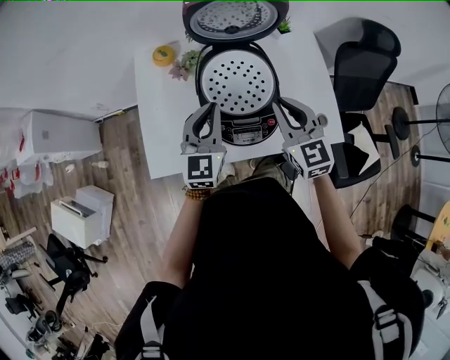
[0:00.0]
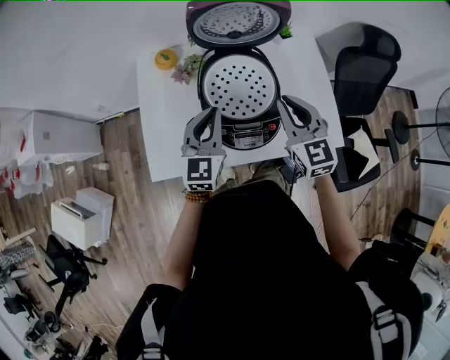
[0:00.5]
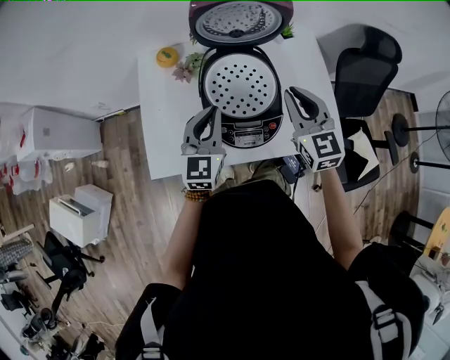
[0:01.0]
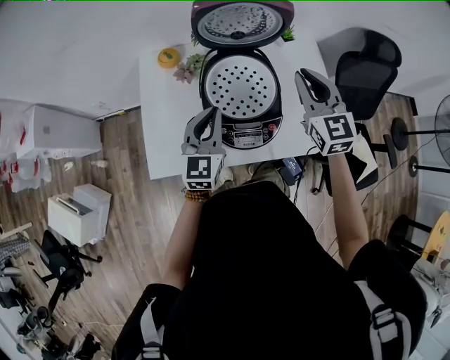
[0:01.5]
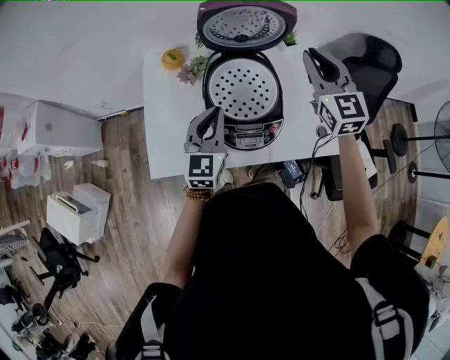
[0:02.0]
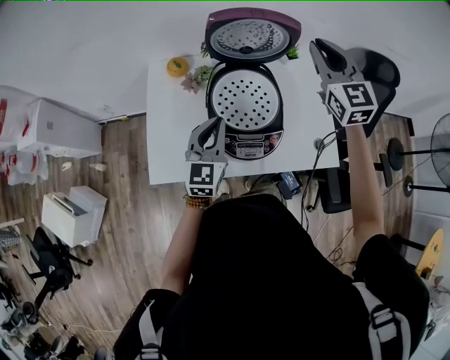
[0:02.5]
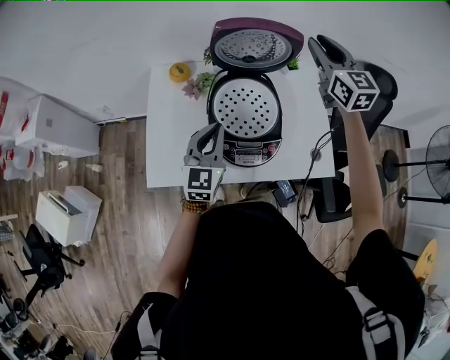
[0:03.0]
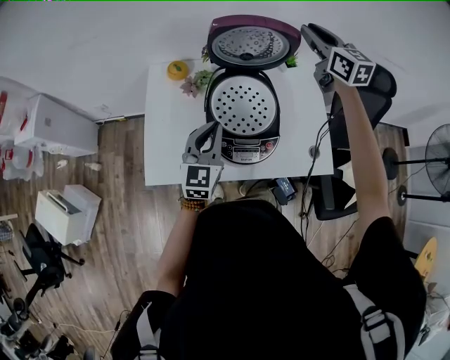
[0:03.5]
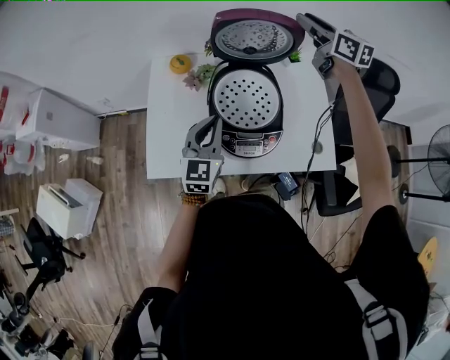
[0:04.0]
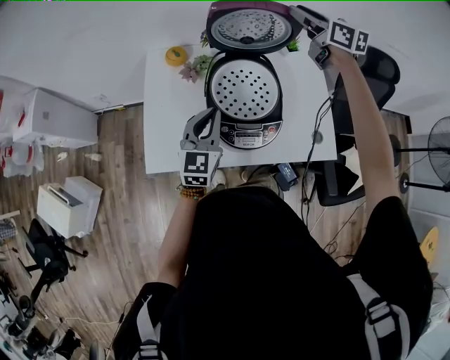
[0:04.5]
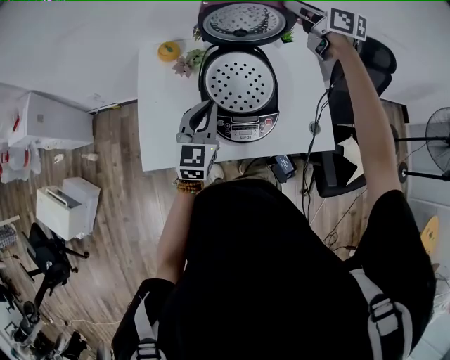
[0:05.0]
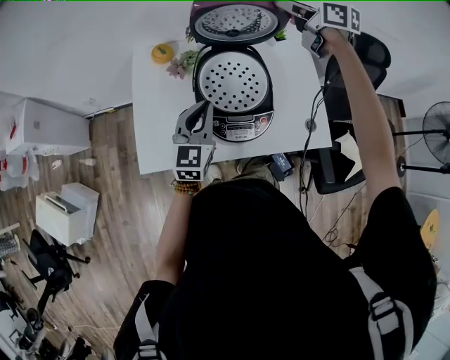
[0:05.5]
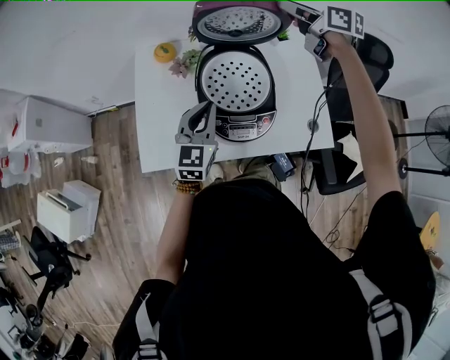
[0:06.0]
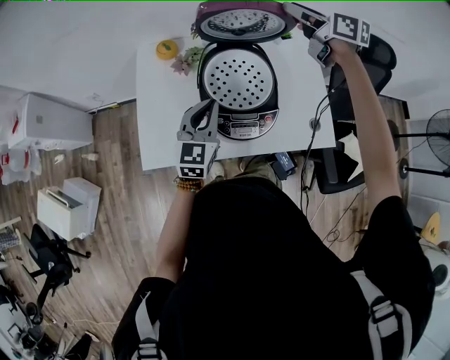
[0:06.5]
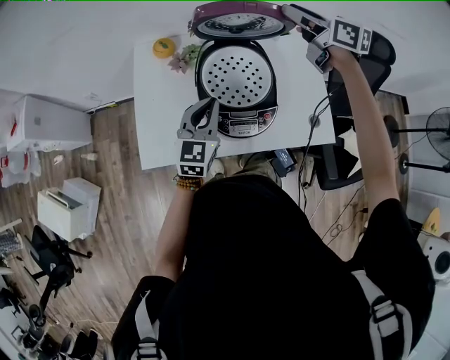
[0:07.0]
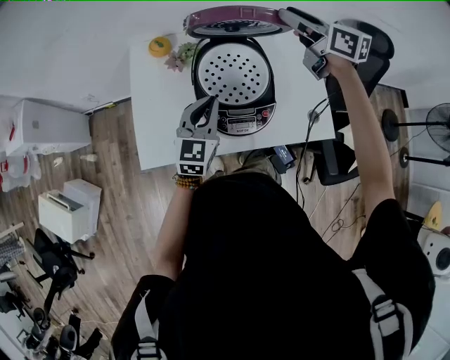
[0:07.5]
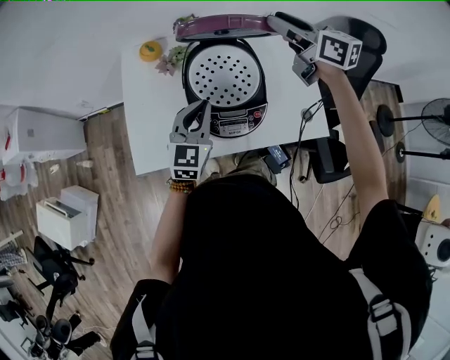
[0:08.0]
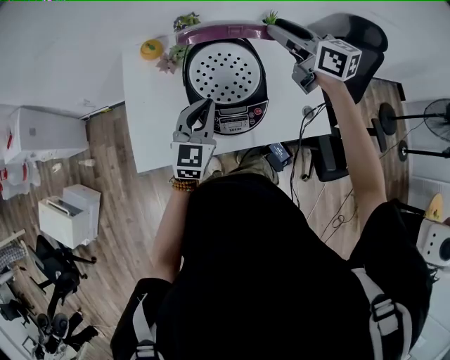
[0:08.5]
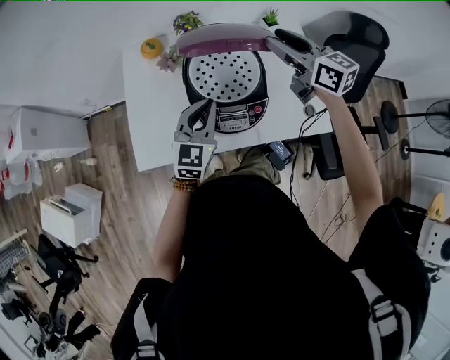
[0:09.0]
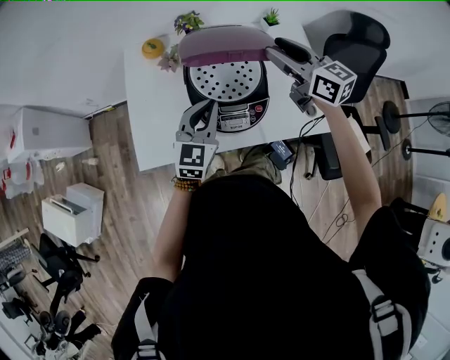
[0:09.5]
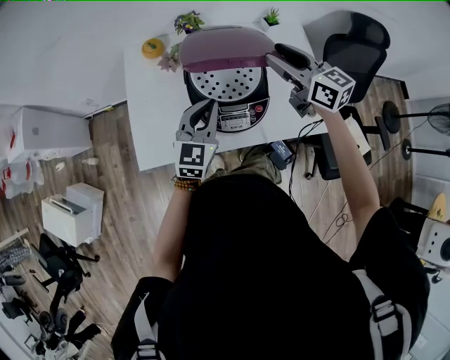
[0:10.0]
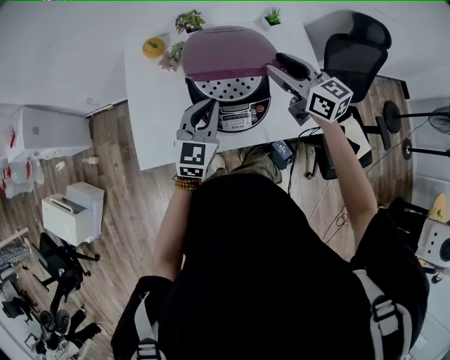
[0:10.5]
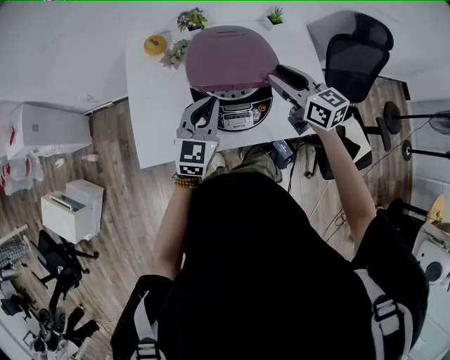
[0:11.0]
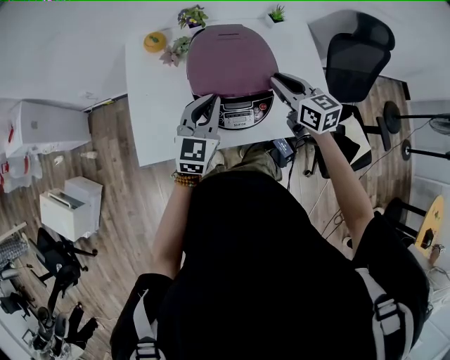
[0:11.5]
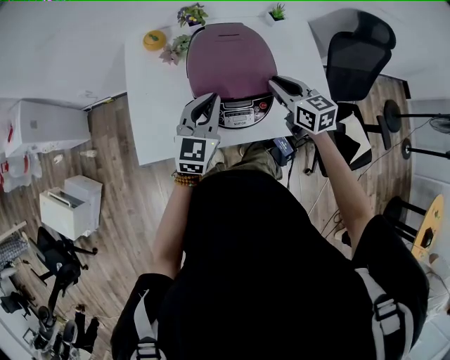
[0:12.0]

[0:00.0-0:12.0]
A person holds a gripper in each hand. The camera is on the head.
0:00.0 to 0:02.0: The right gripper moves upward and forward, roughly 15 cm.
0:02.0 to 0:04.0: The right gripper moves forward, some 15 cm, changes its angle by roughly 30 degrees, and opens its fingers.
0:04.0 to 0:06.0: The grippers make only small movements.
0:06.0 to 0:08.0: The right gripper heads backward, covering roughly 10 cm.
0:08.0 to 0:10.0: The right gripper moves backward and downward, approximately 10 cm.
0:10.0 to 0:12.0: The right gripper goes some 10 cm downward, and closes up.

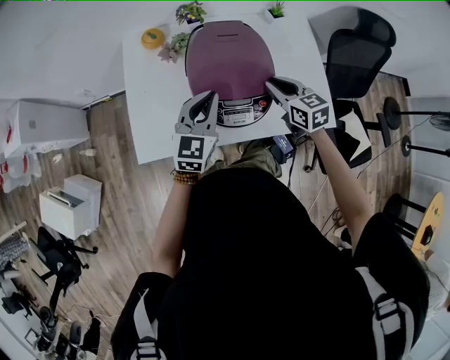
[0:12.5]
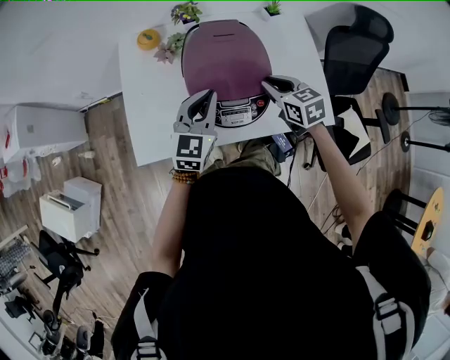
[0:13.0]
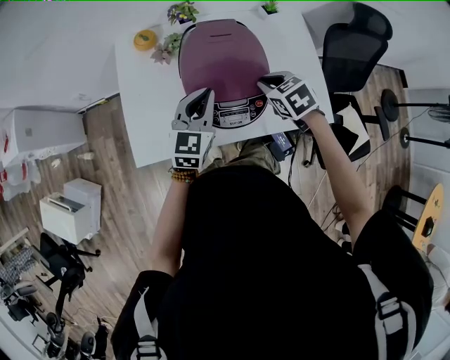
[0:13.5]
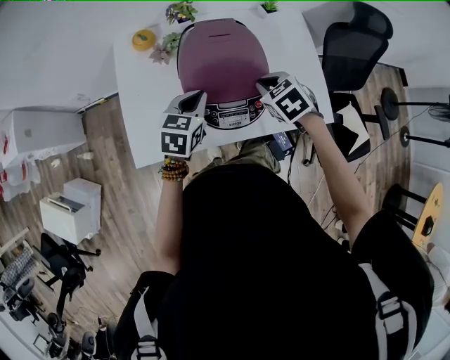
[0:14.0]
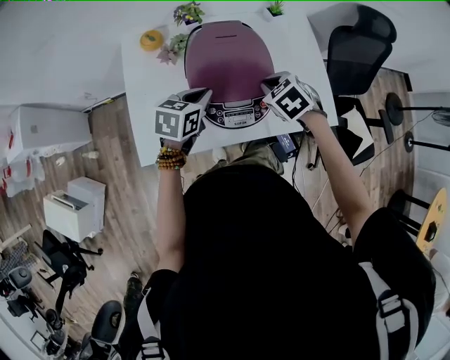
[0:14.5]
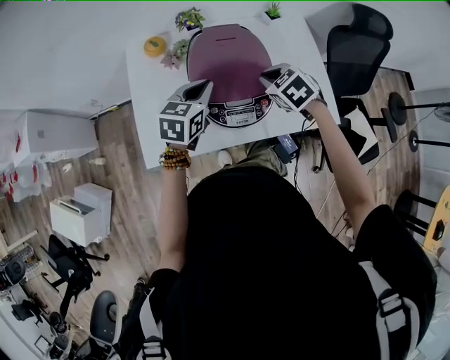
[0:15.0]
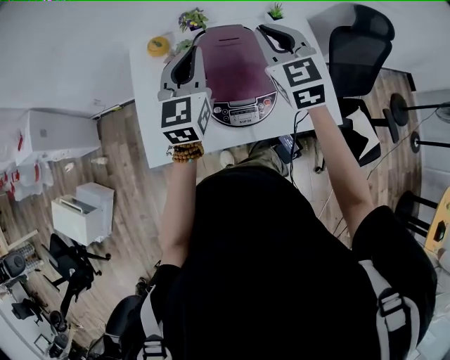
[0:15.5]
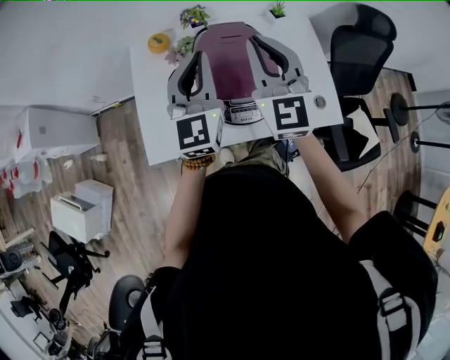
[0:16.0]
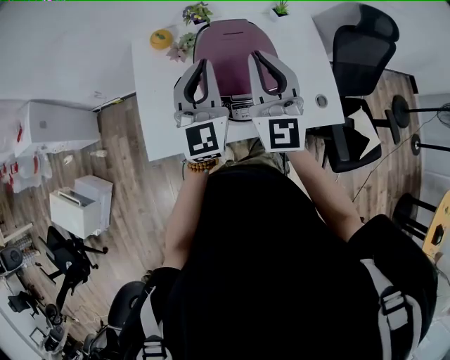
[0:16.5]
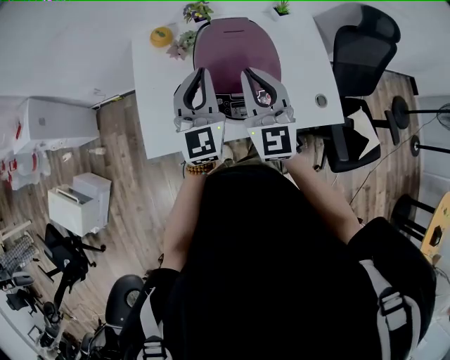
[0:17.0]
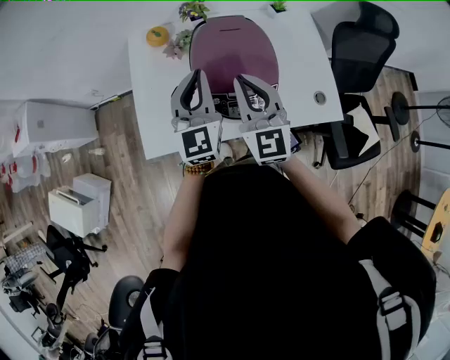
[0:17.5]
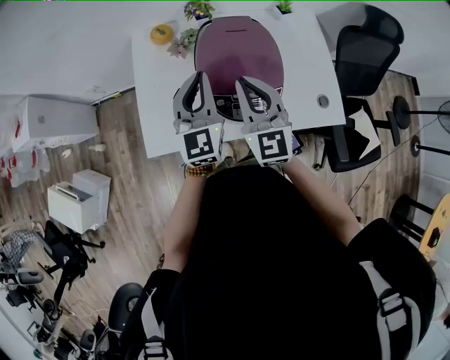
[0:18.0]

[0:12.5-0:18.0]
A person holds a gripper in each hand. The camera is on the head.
0:12.5 to 0:14.5: The left gripper shifts about 5 cm downward, and changes its angle by about 30 degrees, while the right gripper swivels some 40 degrees.
0:14.5 to 0:16.0: Both grippers travel together upward, approximately 20 cm. The left gripper angles its fingers upward, by about 40 degrees, while the right gripper tilts its fingers about 60 degrees upward.
0:16.0 to 0:18.0: The left gripper moves downward, about 10 cm. Meanwhile the right gripper is displaced downward and backward by some 10 cm.

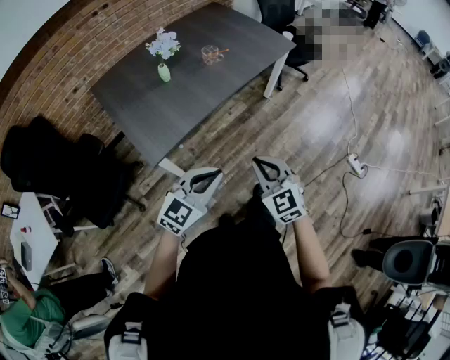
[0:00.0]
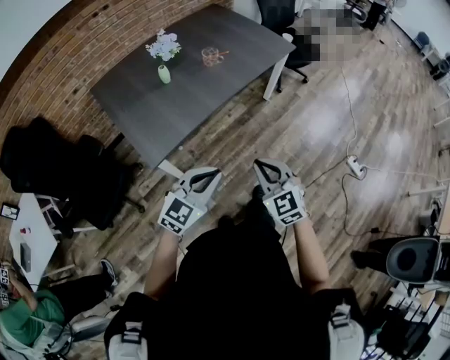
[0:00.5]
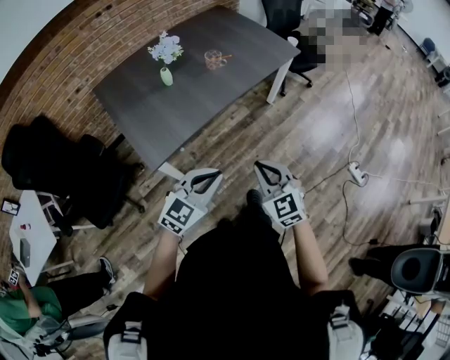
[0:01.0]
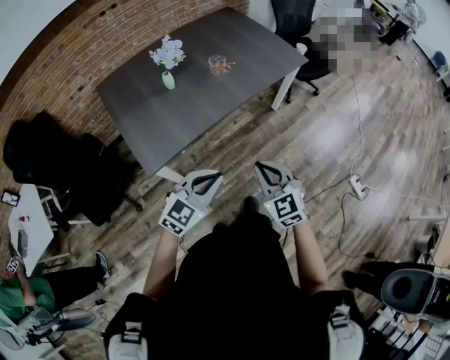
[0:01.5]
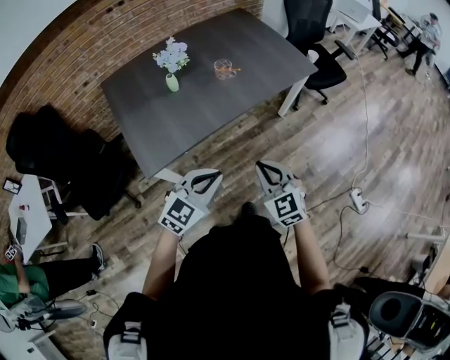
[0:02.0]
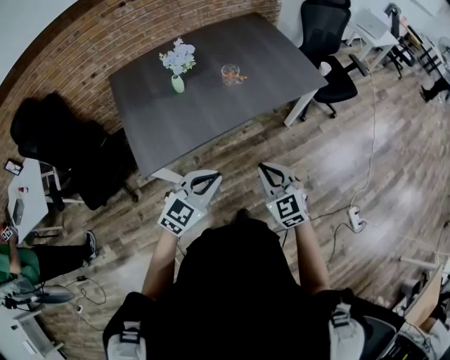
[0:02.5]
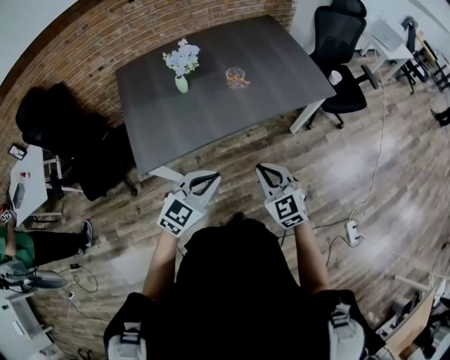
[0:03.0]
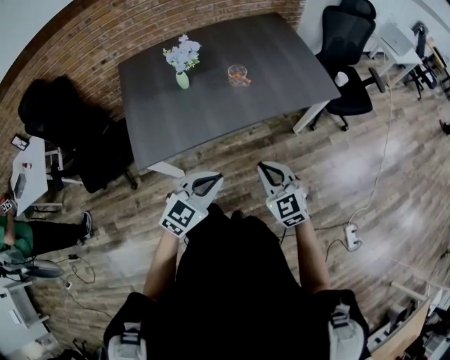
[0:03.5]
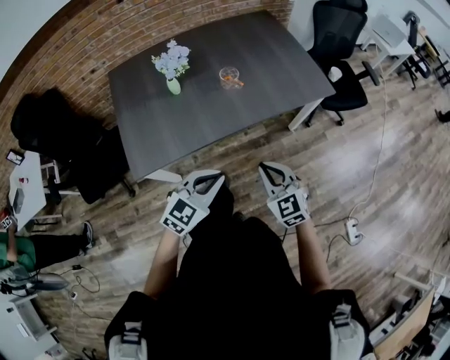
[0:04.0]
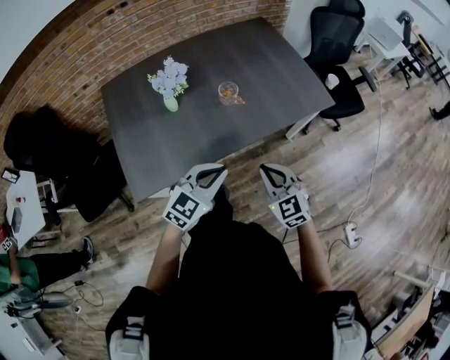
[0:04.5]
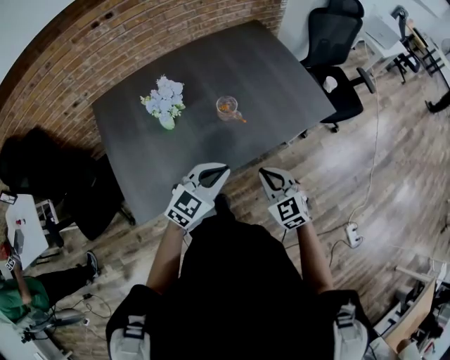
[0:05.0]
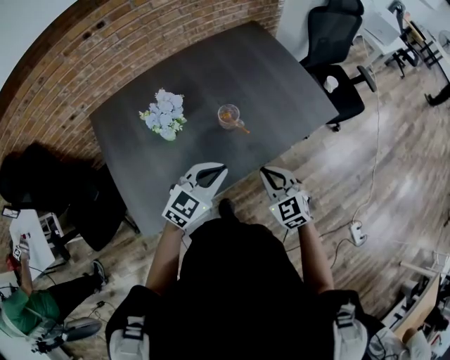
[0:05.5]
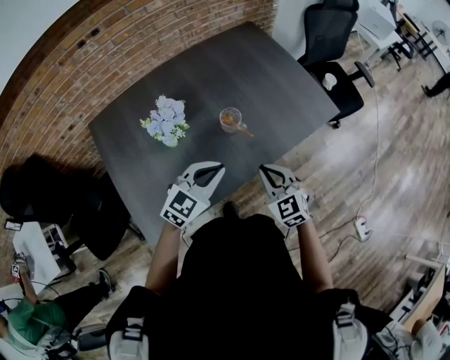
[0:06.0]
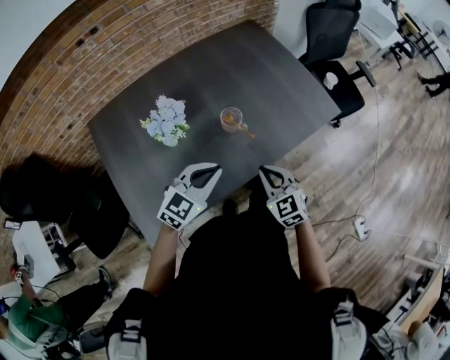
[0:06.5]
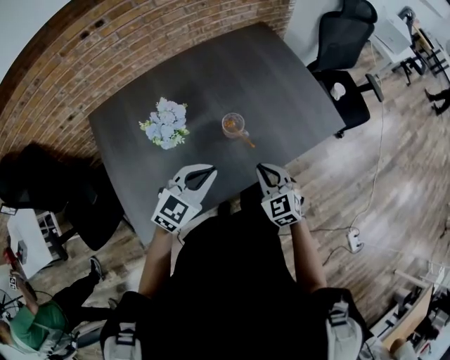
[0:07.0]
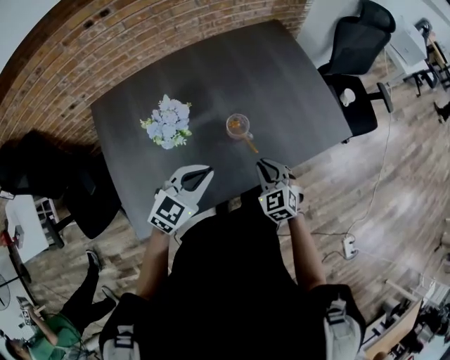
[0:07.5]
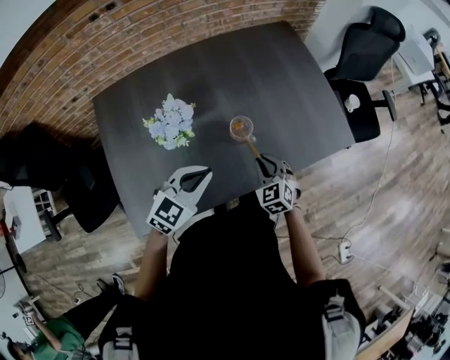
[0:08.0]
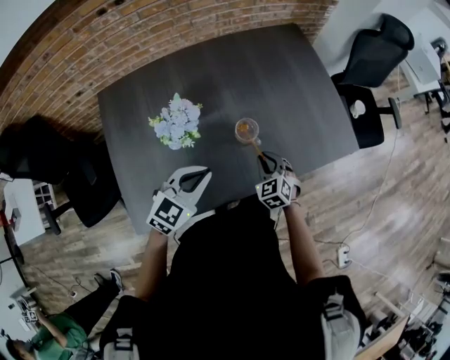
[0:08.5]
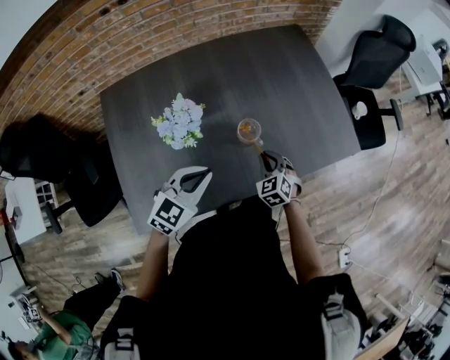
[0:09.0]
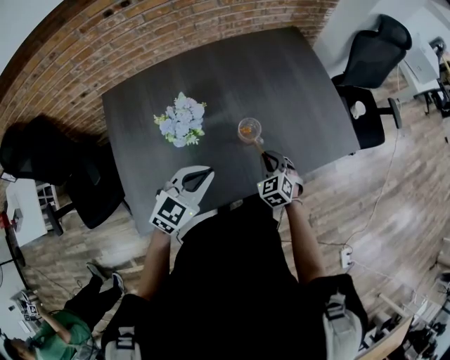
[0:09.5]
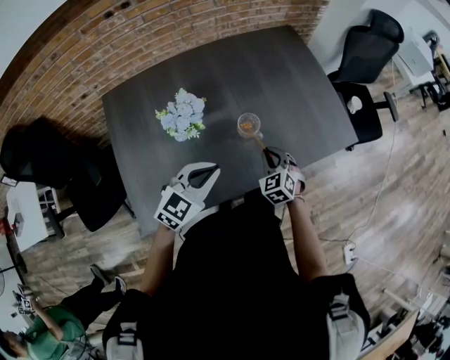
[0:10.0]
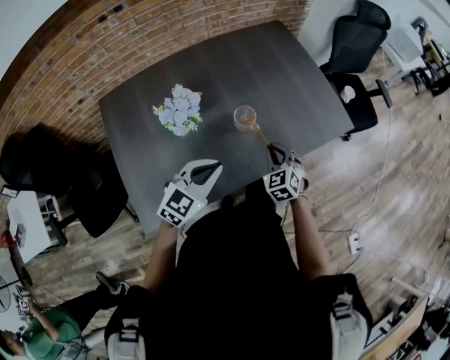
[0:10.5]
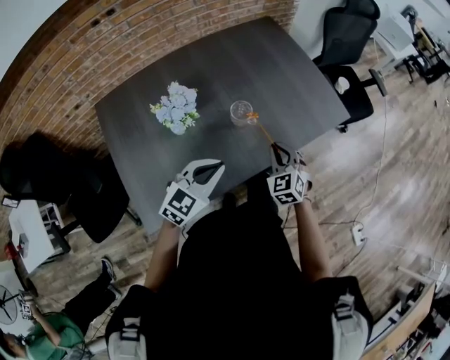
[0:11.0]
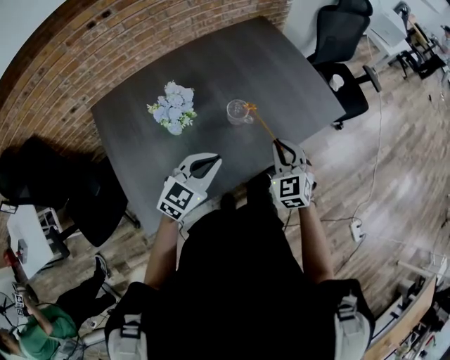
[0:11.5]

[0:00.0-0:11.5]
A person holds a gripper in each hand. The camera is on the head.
0:00.0 to 0:02.0: Both grippers move forward, some 15 cm.
0:02.0 to 0:04.0: Both grippers travel together forward and to the right, about 15 cm.
0:04.0 to 0:06.0: The grippers both shift forward and to the left by approximately 25 cm.
0:06.0 to 0:07.5: The right gripper goes roughly 10 cm forward and downward; the left gripper shifts by about 5 cm.
0:07.5 to 0:09.5: The right gripper heads downward, covering about 5 cm.
0:09.5 to 0:11.5: The right gripper travels upward and backward by approximately 15 cm, and changes its angle by about 20 degrees, while the left gripper ends up about 5 cm from where it was.
